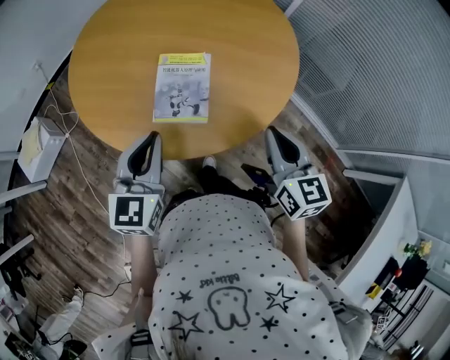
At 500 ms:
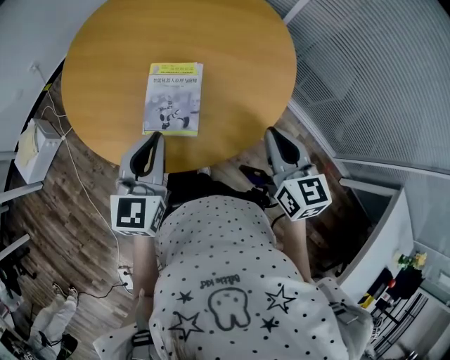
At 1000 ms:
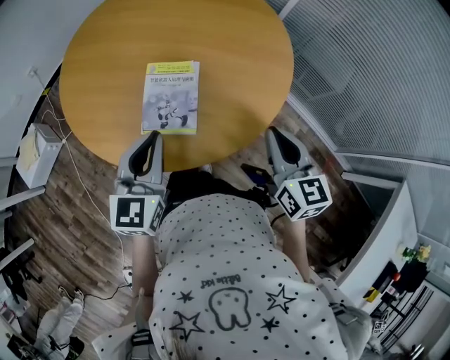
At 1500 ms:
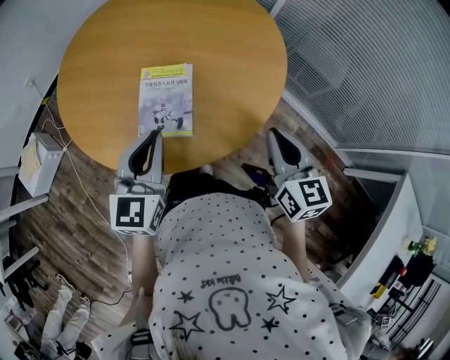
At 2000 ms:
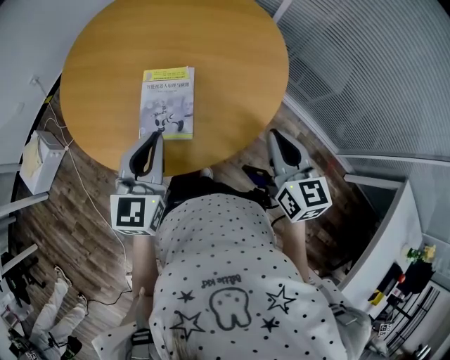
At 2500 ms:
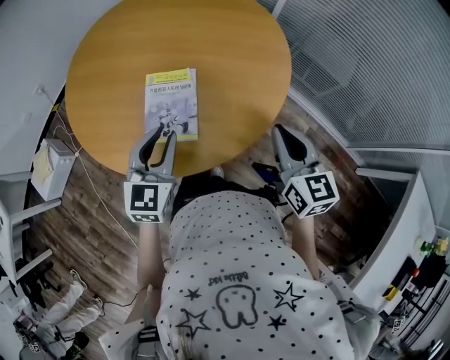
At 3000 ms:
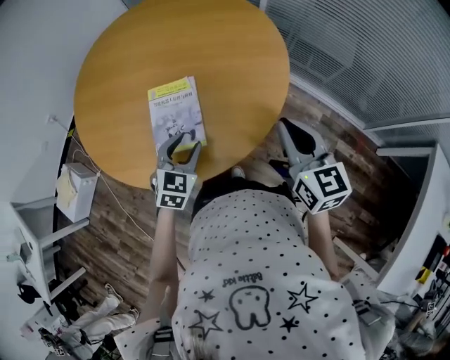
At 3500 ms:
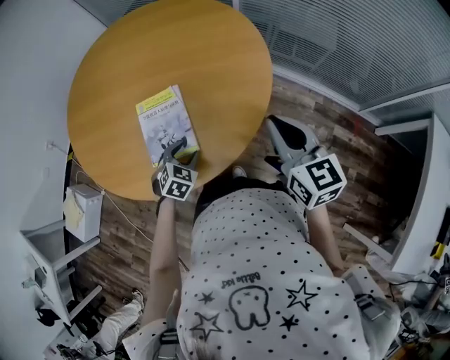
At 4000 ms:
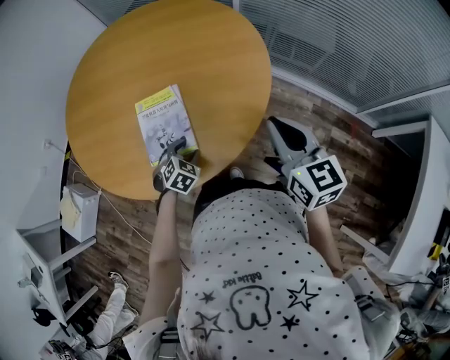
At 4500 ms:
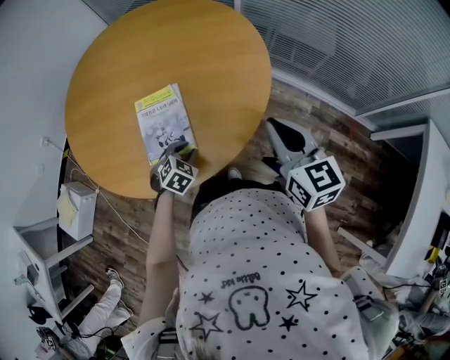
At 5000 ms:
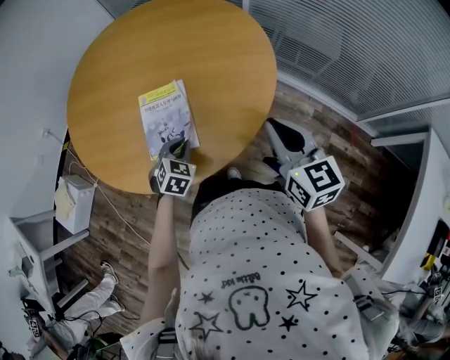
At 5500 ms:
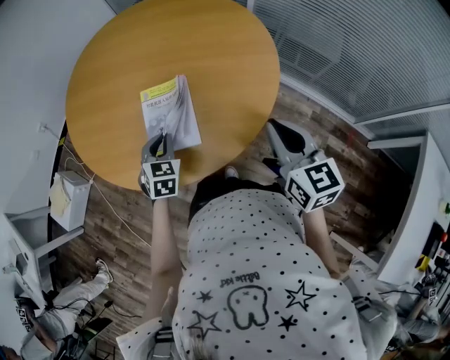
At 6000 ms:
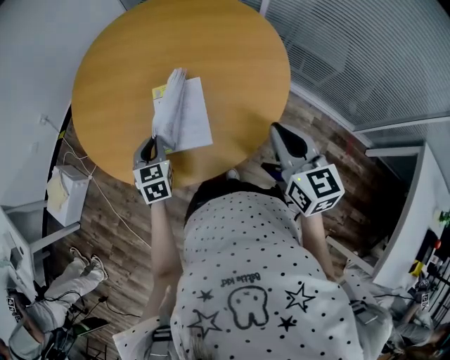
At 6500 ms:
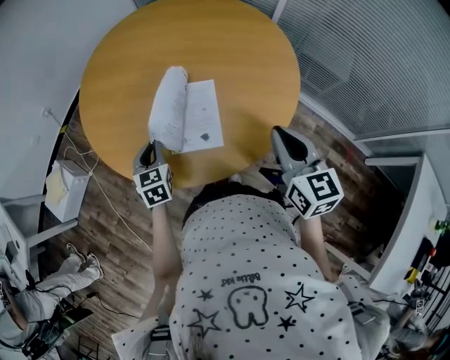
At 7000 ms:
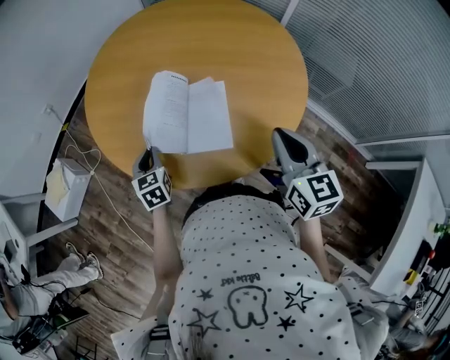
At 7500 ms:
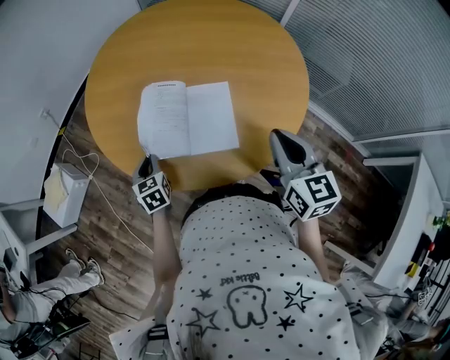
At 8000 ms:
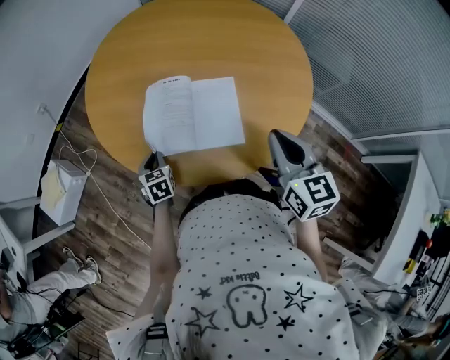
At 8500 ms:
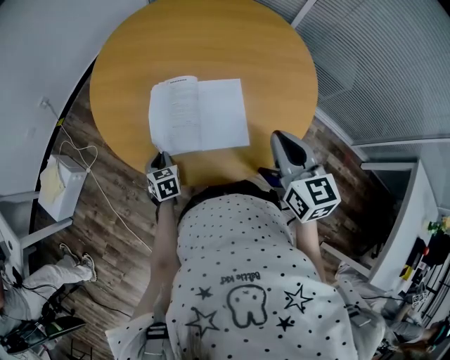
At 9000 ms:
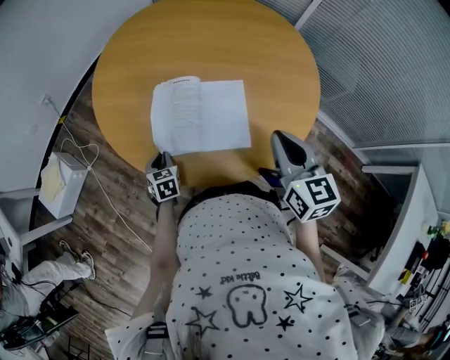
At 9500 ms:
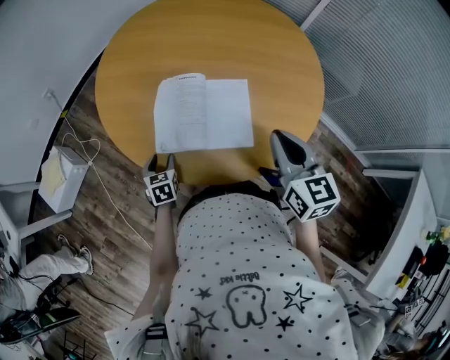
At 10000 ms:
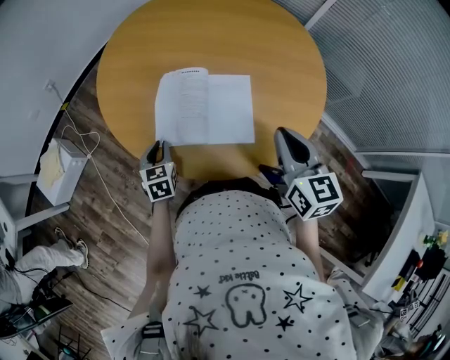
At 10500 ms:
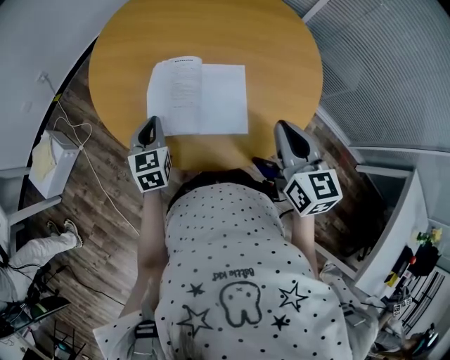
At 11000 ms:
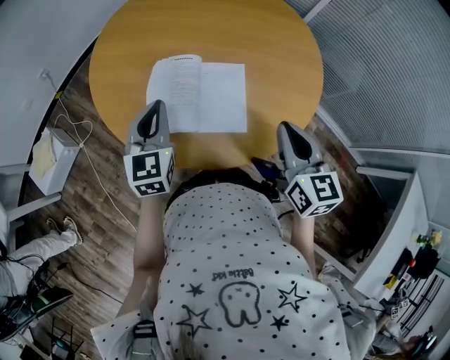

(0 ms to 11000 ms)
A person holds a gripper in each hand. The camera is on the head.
0 ms - 2000 ms: Both grippers travel together to the right, roughly 5 cm.
2000 ms - 3500 ms: The left gripper shifts some 25 cm downward, angles its fingers downward, by some 40 degrees, and opens.
3500 ms - 5500 ms: The left gripper moves upward and to the left, roughly 10 cm, turns by roughly 30 degrees, and closes.
5500 ms - 7500 ms: The right gripper goes some 15 cm to the left. The left gripper travels to the left by some 25 cm, and turns by roughly 30 degrees.
7500 ms - 9000 ms: The left gripper heads downward, covering about 5 cm.
9000 ms - 11000 ms: The left gripper goes roughly 25 cm upward, angles its fingers upward, by about 30 degrees, and opens, then closes again.

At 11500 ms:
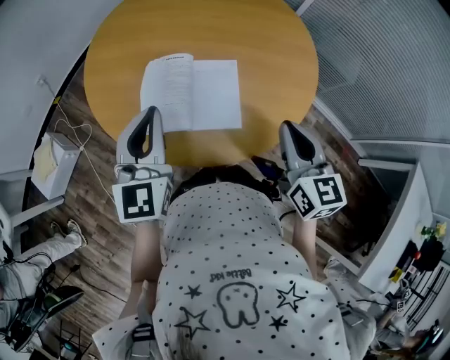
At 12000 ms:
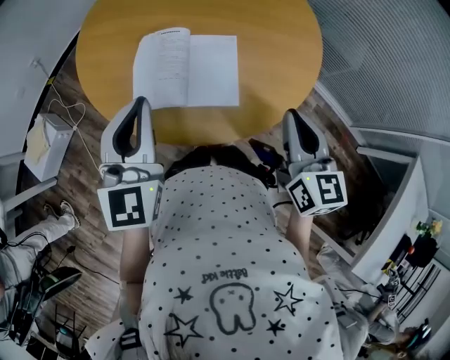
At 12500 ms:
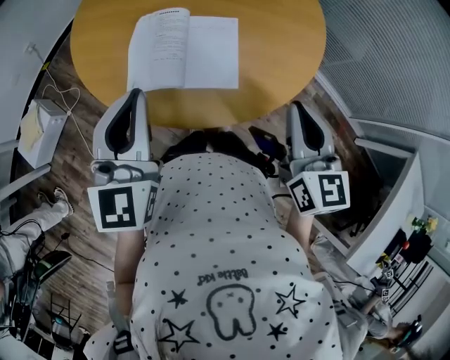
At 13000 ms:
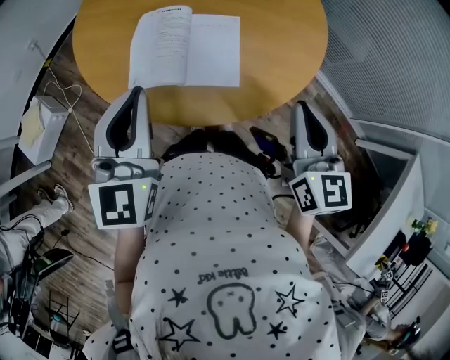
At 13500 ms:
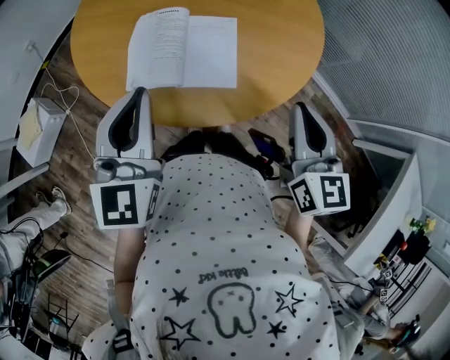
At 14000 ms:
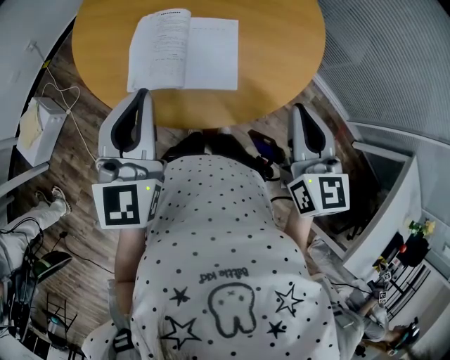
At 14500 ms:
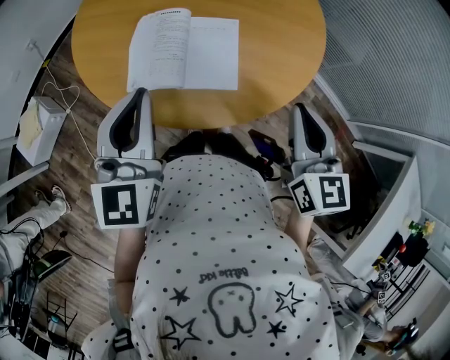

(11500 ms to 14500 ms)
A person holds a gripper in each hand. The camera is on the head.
11500 ms - 13000 ms: The grippers make only small movements.
13000 ms - 14500 ms: Neither gripper changes place.

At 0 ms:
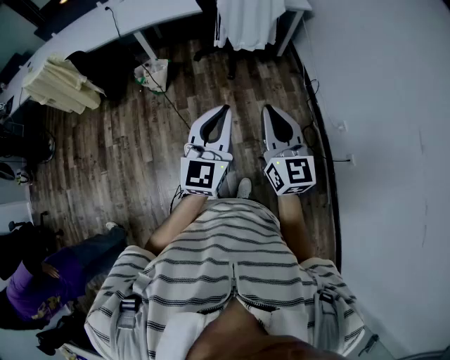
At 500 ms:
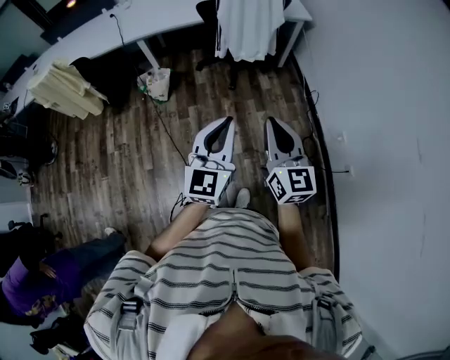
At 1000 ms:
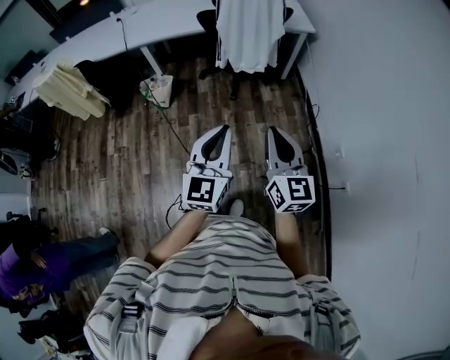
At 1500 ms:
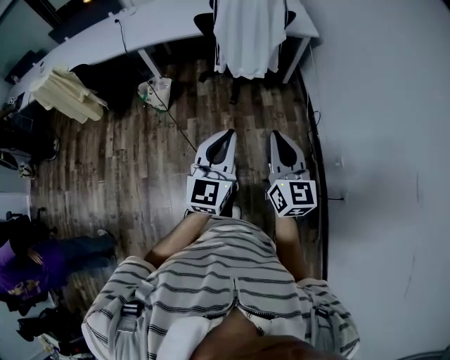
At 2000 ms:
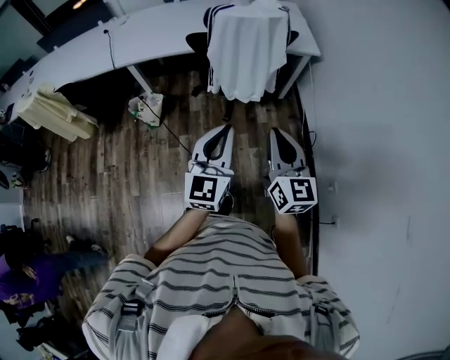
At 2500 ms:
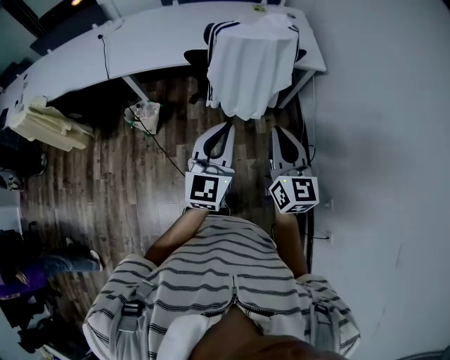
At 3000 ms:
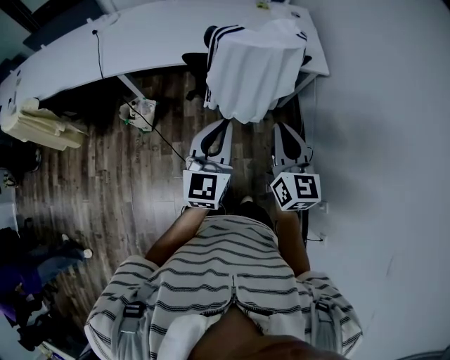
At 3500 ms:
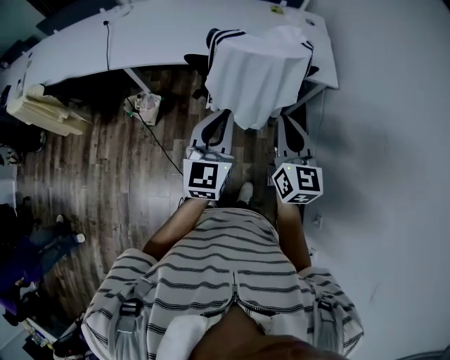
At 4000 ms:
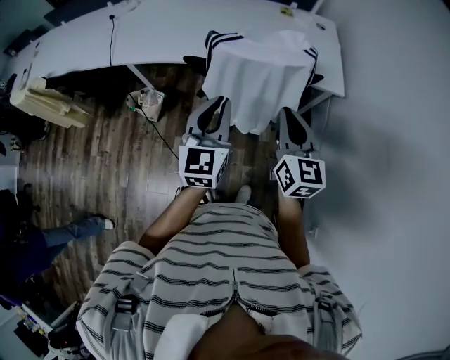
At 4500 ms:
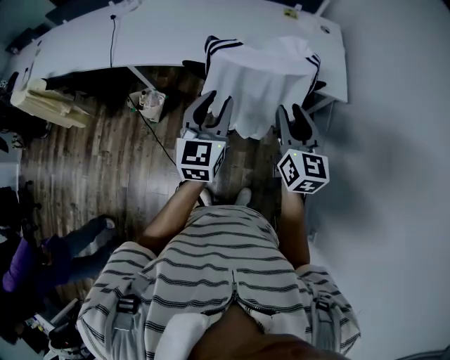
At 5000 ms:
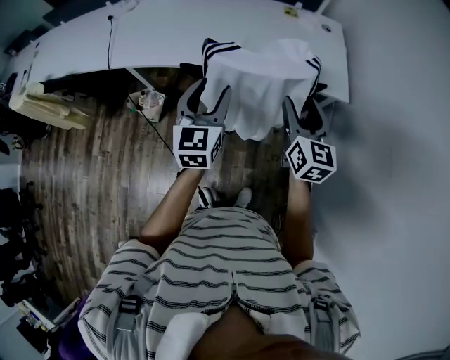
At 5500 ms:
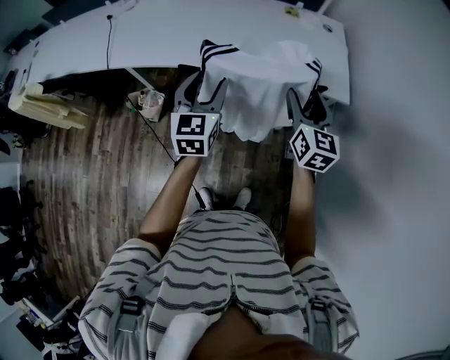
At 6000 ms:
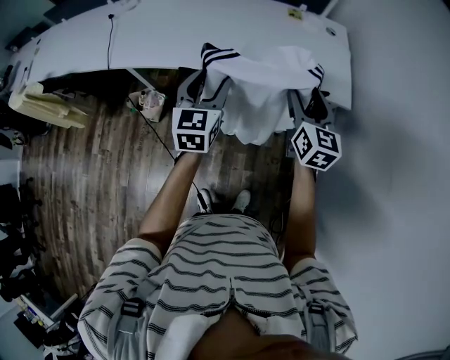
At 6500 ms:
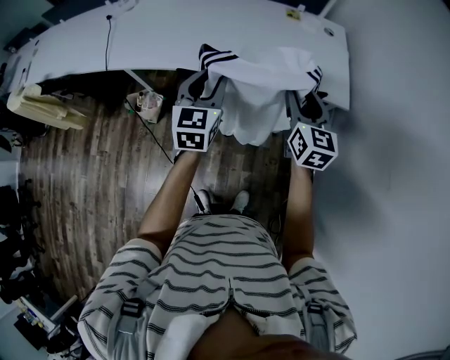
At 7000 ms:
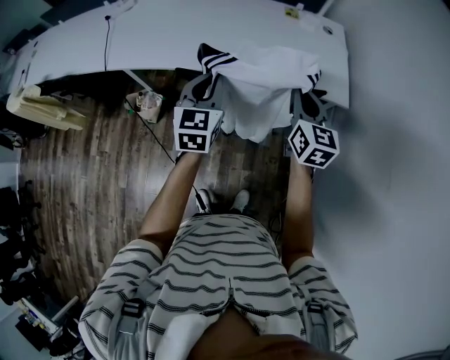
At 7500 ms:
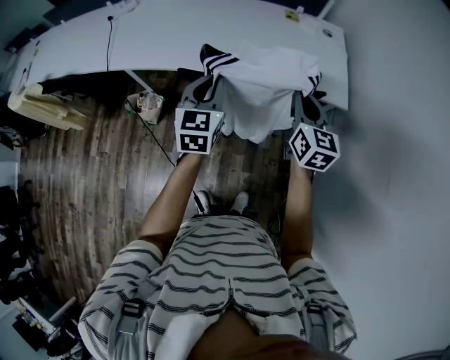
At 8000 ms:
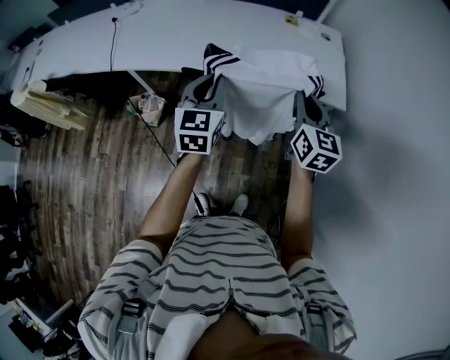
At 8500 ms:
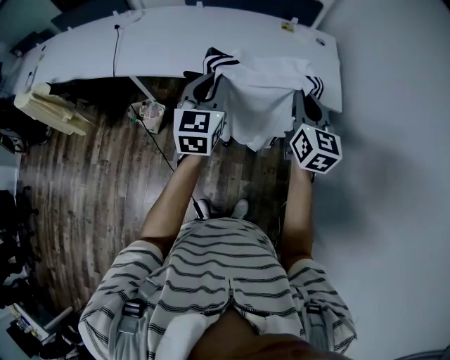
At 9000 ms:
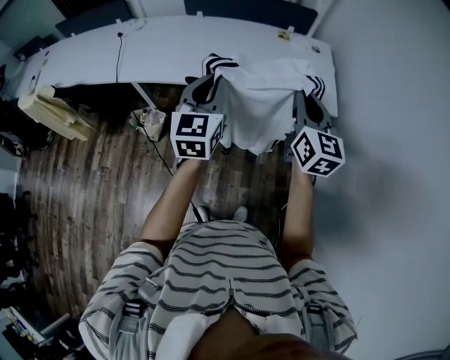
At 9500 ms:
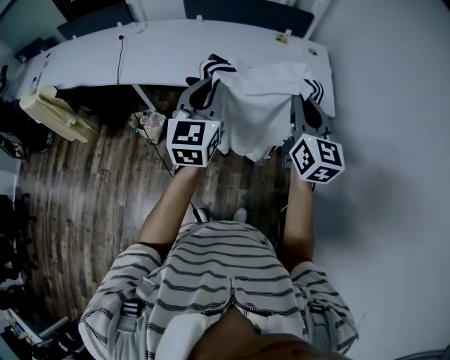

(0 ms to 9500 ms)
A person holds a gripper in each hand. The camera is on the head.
0 ms - 2000 ms: The left gripper is displaced forward by approximately 25 cm; the right gripper shifts about 30 cm forward and to the right.
2000 ms - 4000 ms: The two grippers go approximately 35 cm forward.
4000 ms - 5500 ms: The right gripper goes about 15 cm forward and to the right, and opens its fingers. The left gripper shifts some 15 cm forward, and opens up.
5500 ms - 7500 ms: The right gripper closes its fingers. Meanwhile the left gripper closes.
7500 ms - 9500 ms: The two grippers go about 15 cm upward and backward.

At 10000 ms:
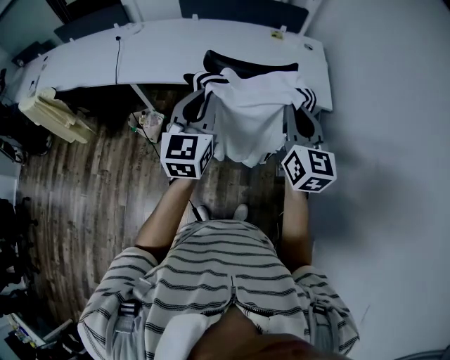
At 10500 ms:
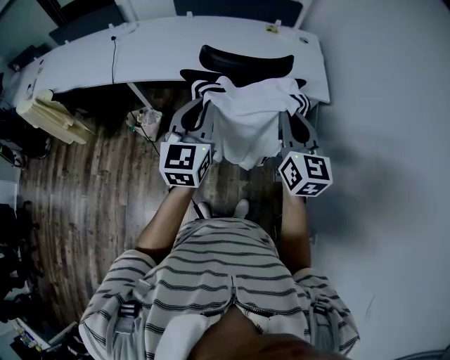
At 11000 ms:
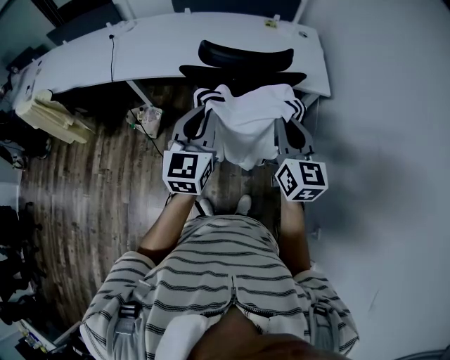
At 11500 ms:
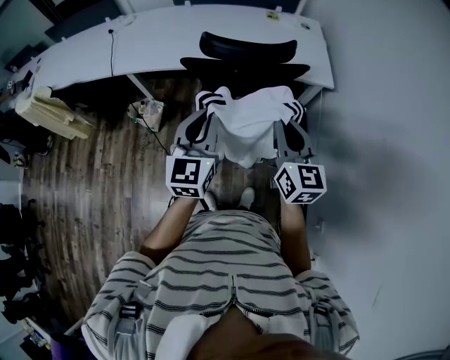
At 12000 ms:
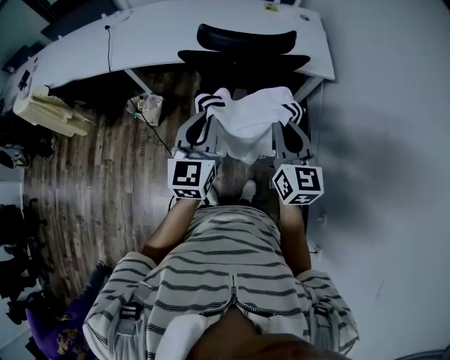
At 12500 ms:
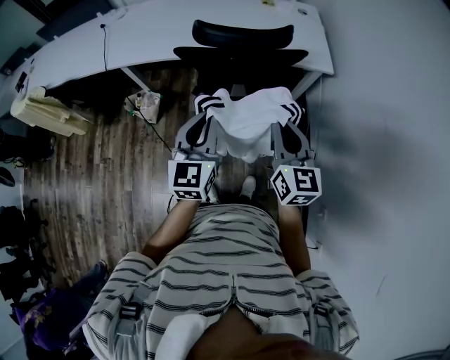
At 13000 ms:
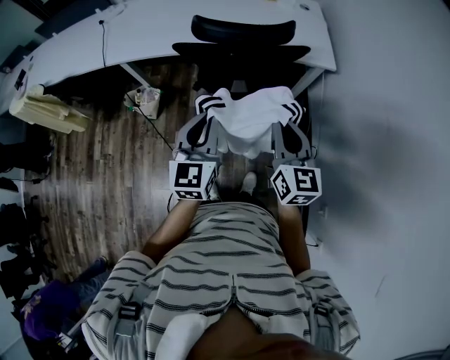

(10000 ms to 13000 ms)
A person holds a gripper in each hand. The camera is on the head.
10000 ms - 11500 ms: The grippers both shift backward and downward by approximately 10 cm.
11500 ms - 13000 ms: The right gripper ends up roughly 5 cm from where it was. Meanwhile the left gripper is displaced downward by about 5 cm.
